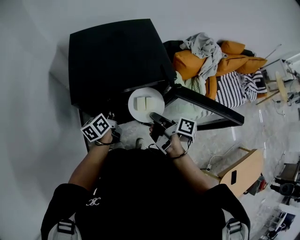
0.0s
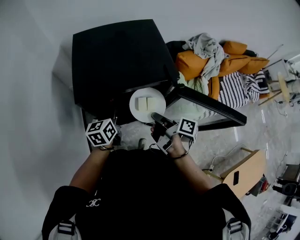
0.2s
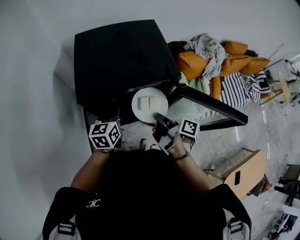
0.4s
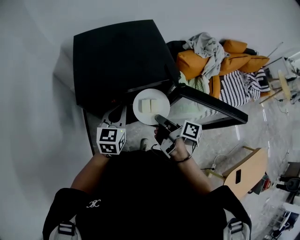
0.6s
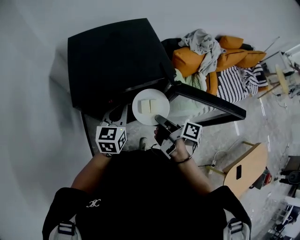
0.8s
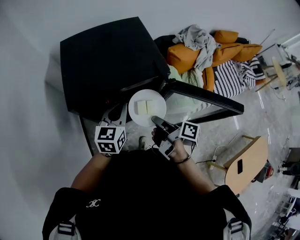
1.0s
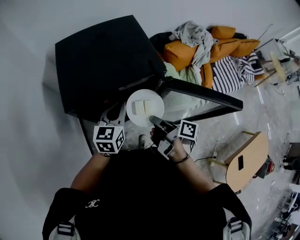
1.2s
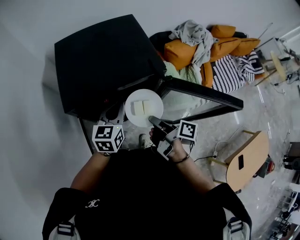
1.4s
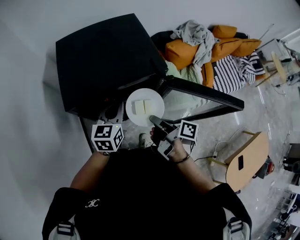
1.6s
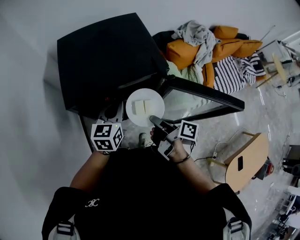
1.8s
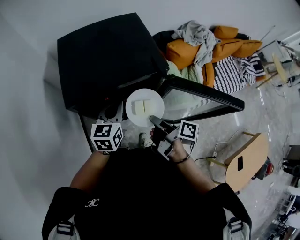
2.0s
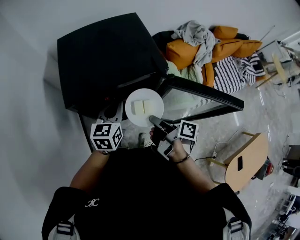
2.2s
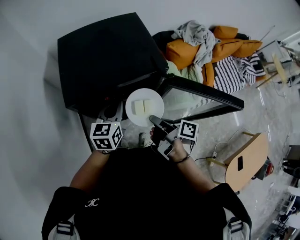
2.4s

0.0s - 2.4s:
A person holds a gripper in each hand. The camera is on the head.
0.0s - 1.2s: The left gripper shifts approximately 10 cm upward and to the right, and changes its angle by some 40 degrees.
1.2s - 2.4s: There are only small adjustments of the grippers.

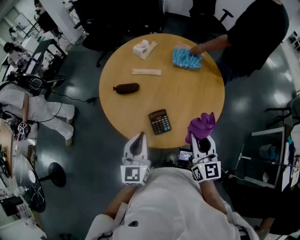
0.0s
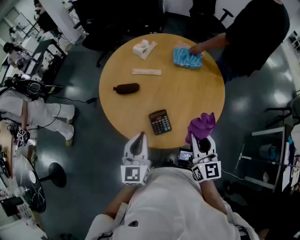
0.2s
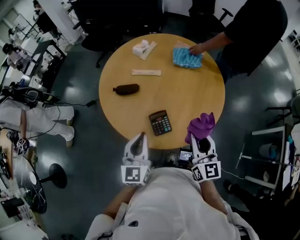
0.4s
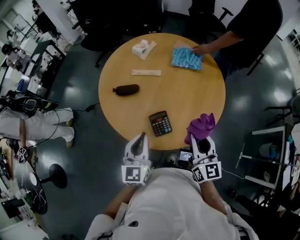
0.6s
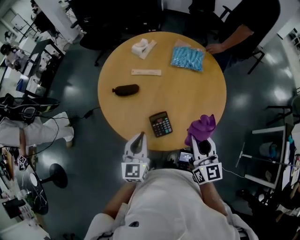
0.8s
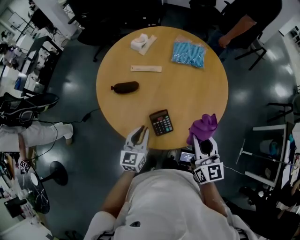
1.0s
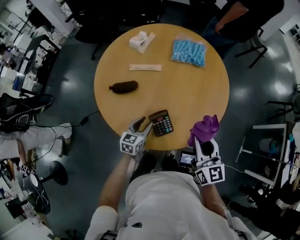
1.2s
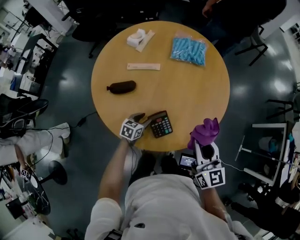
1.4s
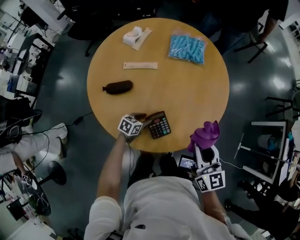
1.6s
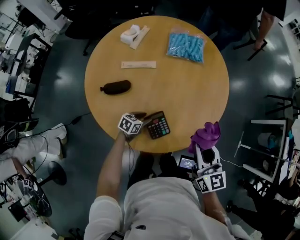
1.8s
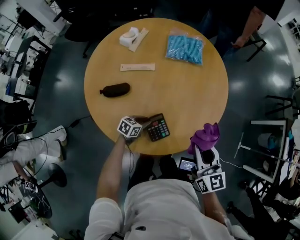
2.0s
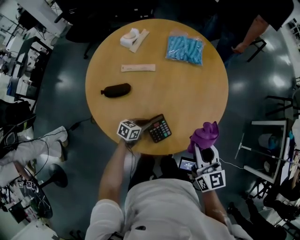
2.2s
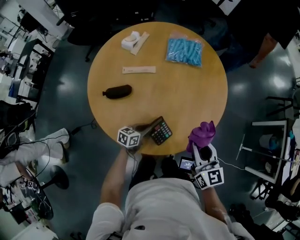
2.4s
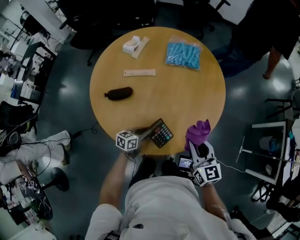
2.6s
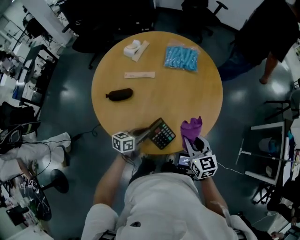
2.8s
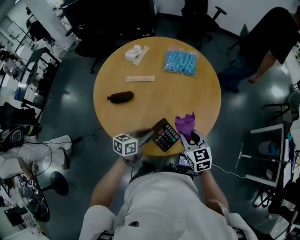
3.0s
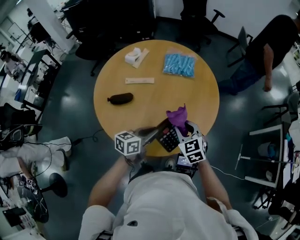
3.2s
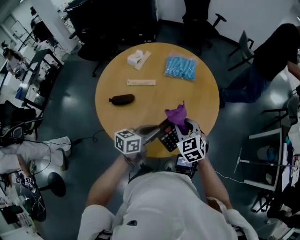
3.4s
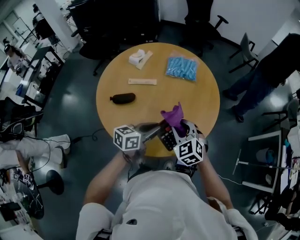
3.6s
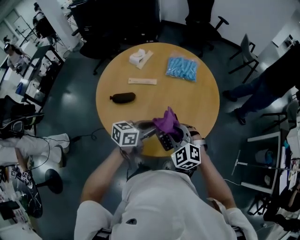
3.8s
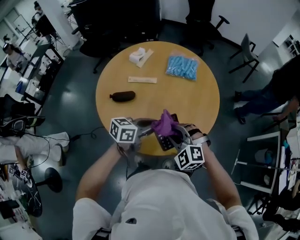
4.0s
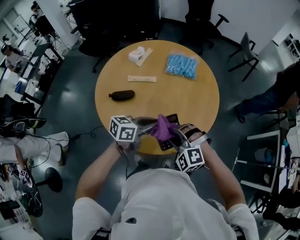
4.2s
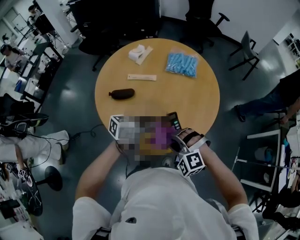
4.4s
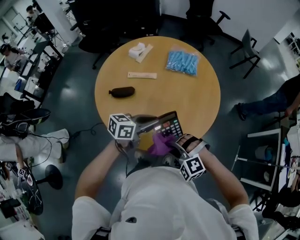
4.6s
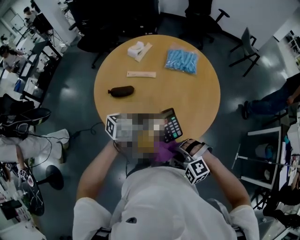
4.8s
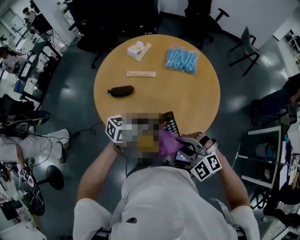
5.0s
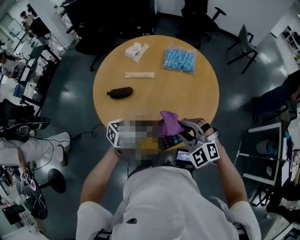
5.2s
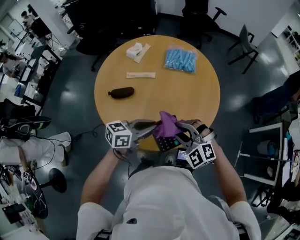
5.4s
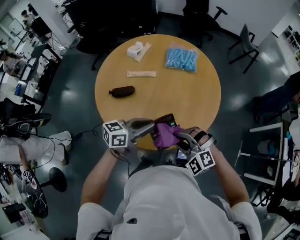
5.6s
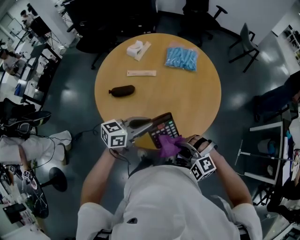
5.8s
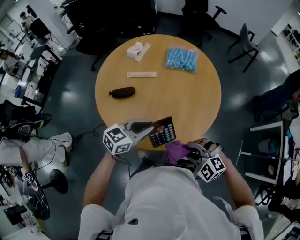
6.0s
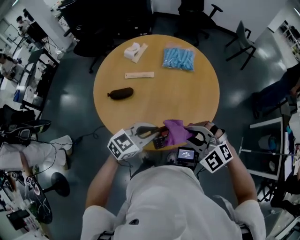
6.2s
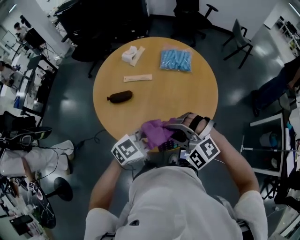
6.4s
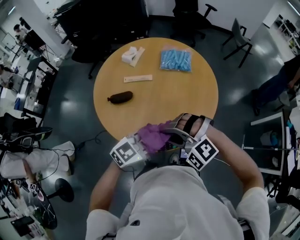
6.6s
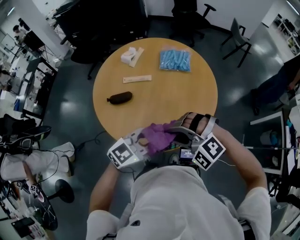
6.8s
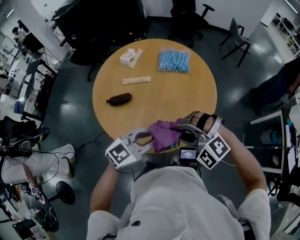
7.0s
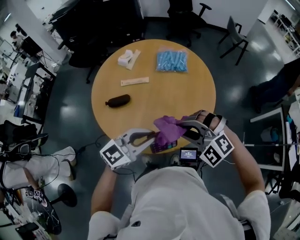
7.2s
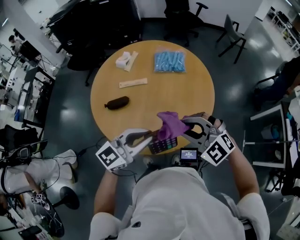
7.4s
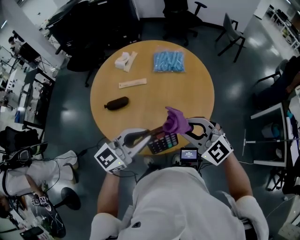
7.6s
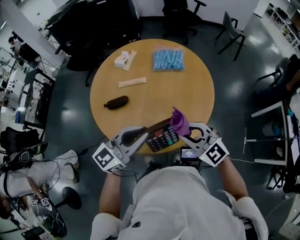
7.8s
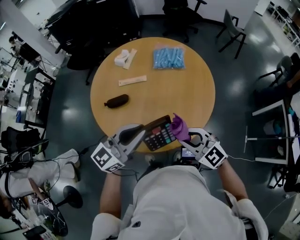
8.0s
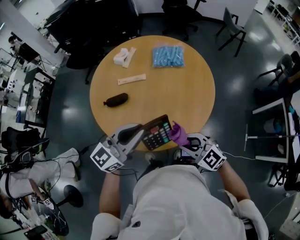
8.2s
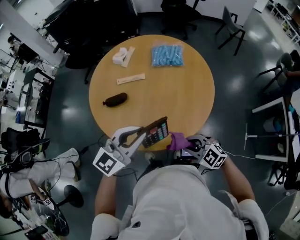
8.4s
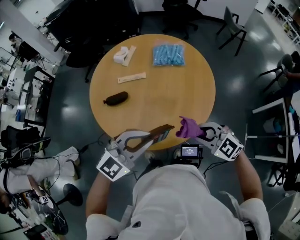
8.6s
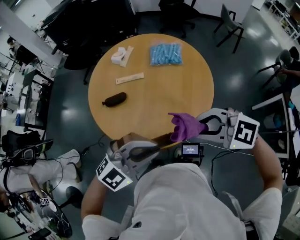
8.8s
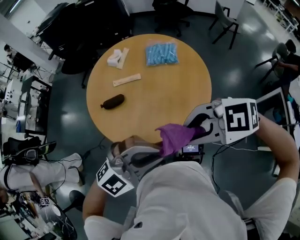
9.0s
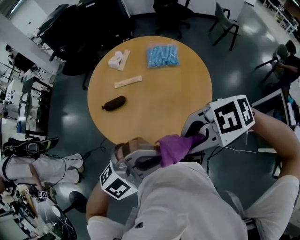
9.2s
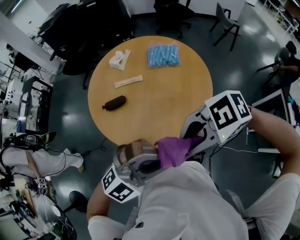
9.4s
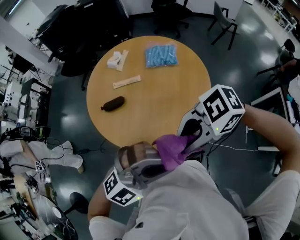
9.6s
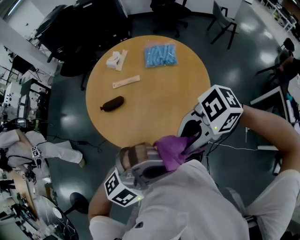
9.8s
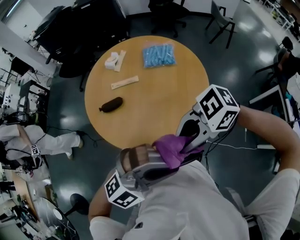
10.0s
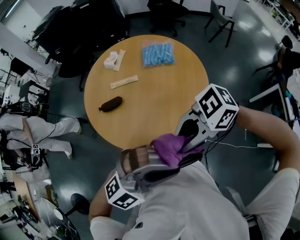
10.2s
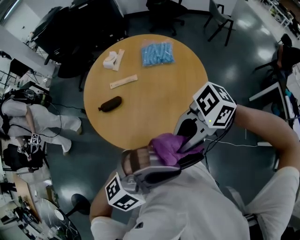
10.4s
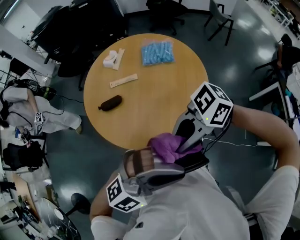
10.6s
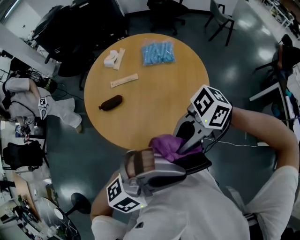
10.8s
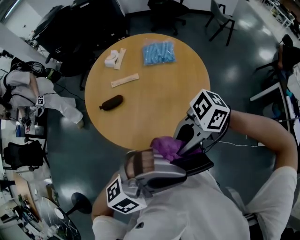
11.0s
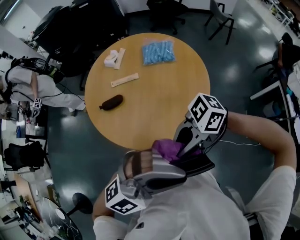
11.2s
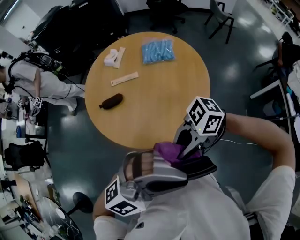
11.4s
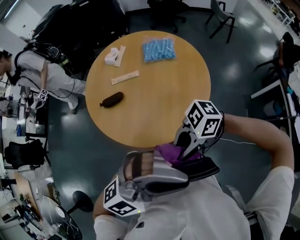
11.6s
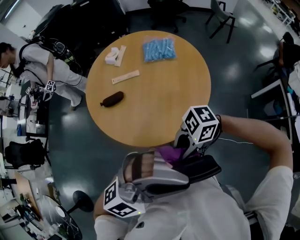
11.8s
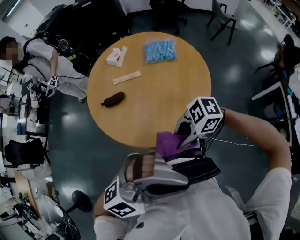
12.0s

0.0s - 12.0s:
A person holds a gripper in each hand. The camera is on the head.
0.0s - 1.6s: The right gripper changes place by approximately 5 cm. Meanwhile the left gripper is displaced downward by about 30 cm, points its fingers approximately 30 degrees further downward, and opens.
1.6s - 3.0s: The left gripper is displaced upward by some 20 cm, turns by about 30 degrees, and closes its fingers, while the right gripper moves downward, some 5 cm, and rotates roughly 20 degrees.
3.0s - 4.4s: The left gripper shifts approximately 10 cm upward. The right gripper travels backward and to the left by some 10 cm, and twists some 70 degrees counterclockwise, seen from behind.
4.4s - 6.0s: The right gripper reaches roughly 5 cm upward, then returns. The left gripper turns by roughly 20 degrees.
6.0s - 7.6s: The two grippers go about 10 cm upward. The left gripper changes its angle by approximately 20 degrees; the right gripper swivels some 30 degrees.
7.6s - 9.0s: The left gripper shifts by approximately 10 cm, and rotates approximately 40 degrees; the right gripper travels downward and back again, roughly 15 cm each way, and turns by some 50 degrees.
9.0s - 10.4s: The left gripper changes place by roughly 5 cm. Meanwhile the right gripper rotates roughly 30 degrees.
10.4s - 12.0s: The left gripper goes some 5 cm upward; the right gripper shifts approximately 10 cm downward.

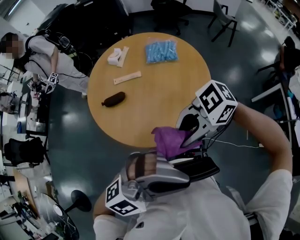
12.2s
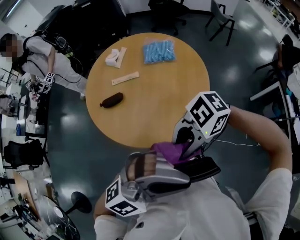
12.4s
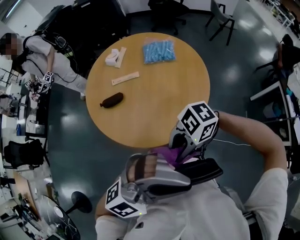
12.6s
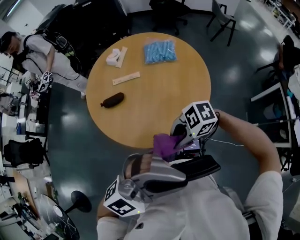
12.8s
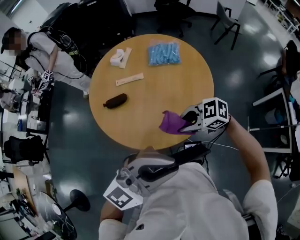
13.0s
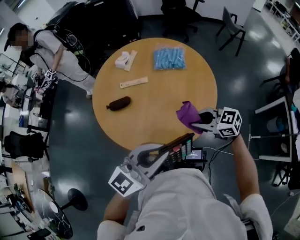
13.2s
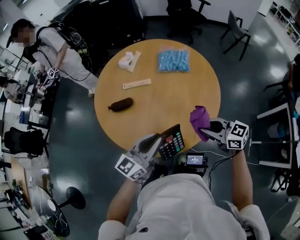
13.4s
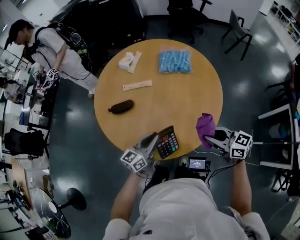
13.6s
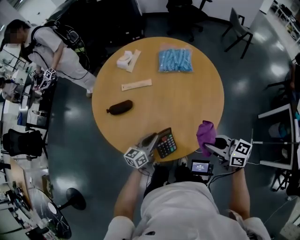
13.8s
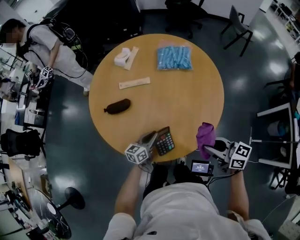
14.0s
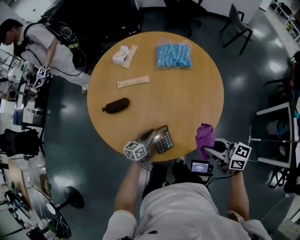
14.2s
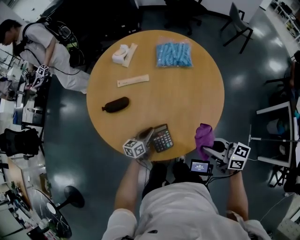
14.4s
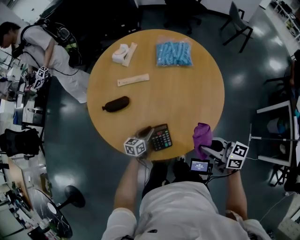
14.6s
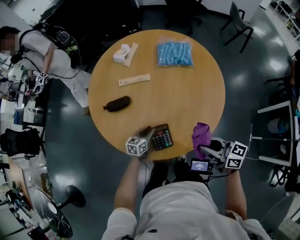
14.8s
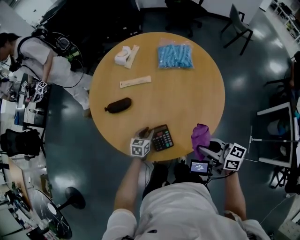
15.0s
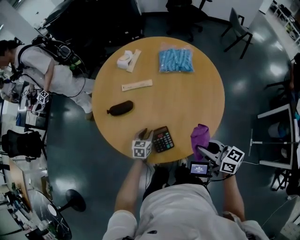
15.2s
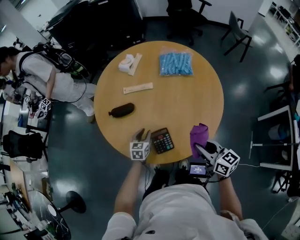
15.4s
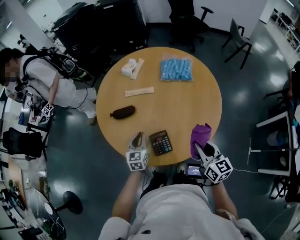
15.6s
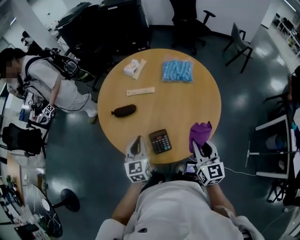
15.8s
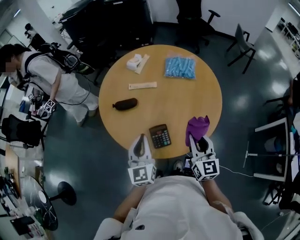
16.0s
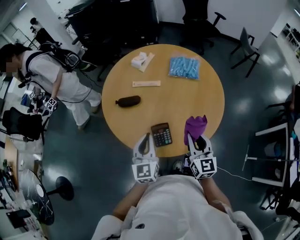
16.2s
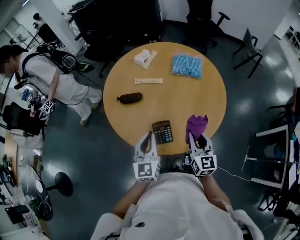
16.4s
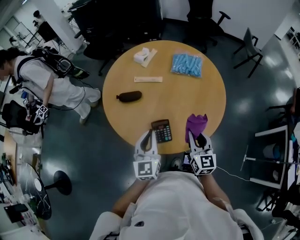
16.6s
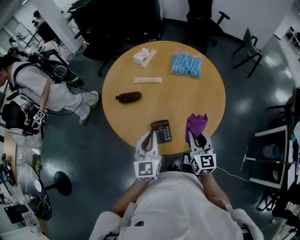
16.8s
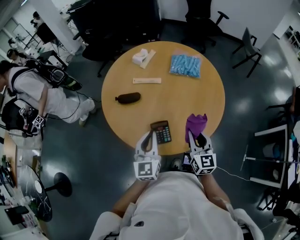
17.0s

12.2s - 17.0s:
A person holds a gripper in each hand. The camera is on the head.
12.2s - 13.8s: The left gripper goes some 40 cm downward, and rolls counterclockwise, seen from behind, by roughly 70 degrees. The right gripper heads downward, covering about 15 cm, and turns by roughly 70 degrees.
13.8s - 15.4s: The left gripper heads downward, forward and to the left, covering about 10 cm, and swivels some 30 degrees.
15.4s - 17.0s: The left gripper moves upward and backward, some 25 cm, rotates roughly 30 degrees, and closes up. Meanwhile the right gripper turns by approximately 30 degrees.

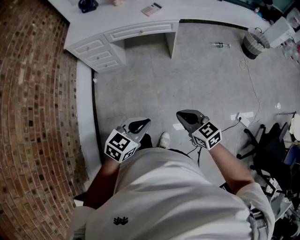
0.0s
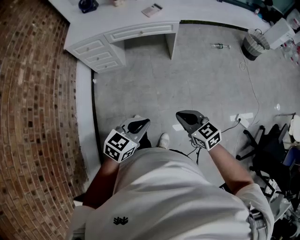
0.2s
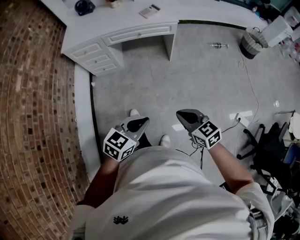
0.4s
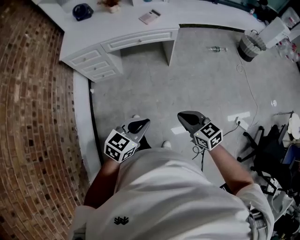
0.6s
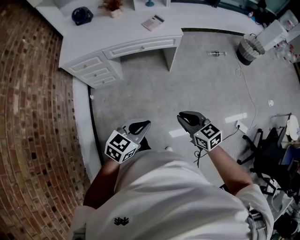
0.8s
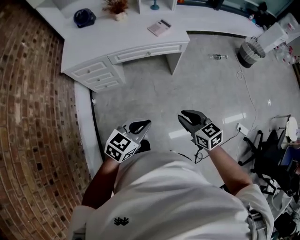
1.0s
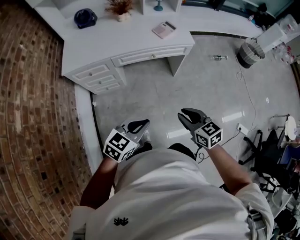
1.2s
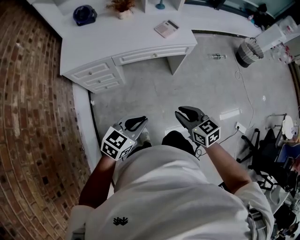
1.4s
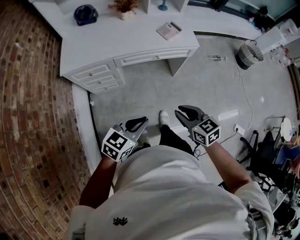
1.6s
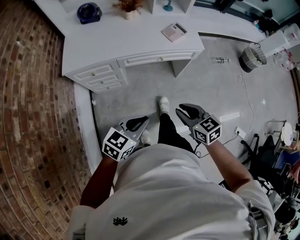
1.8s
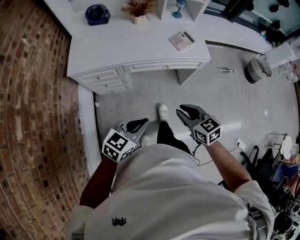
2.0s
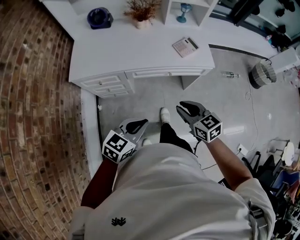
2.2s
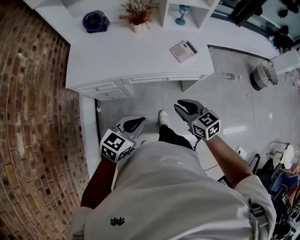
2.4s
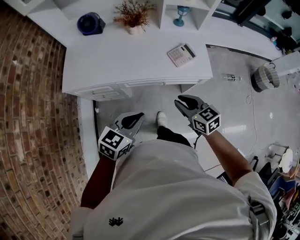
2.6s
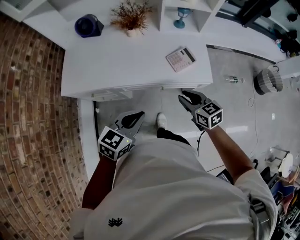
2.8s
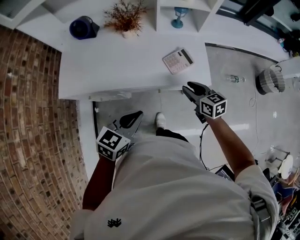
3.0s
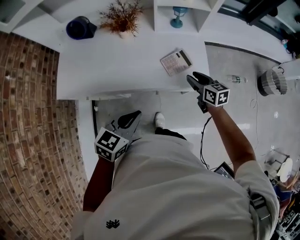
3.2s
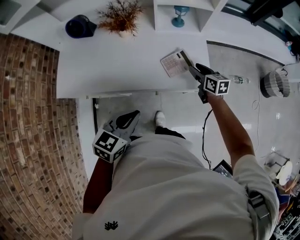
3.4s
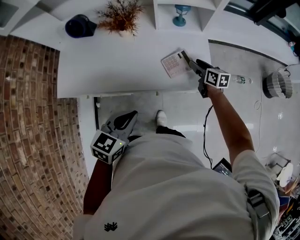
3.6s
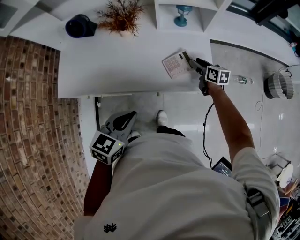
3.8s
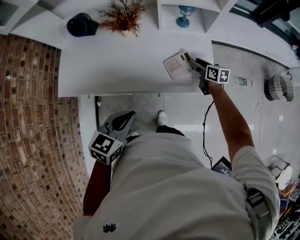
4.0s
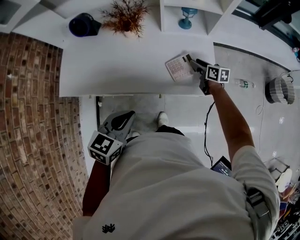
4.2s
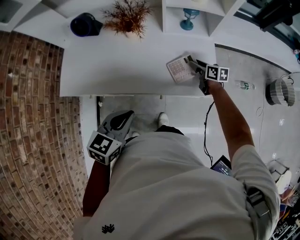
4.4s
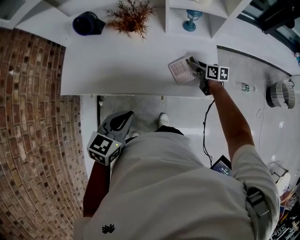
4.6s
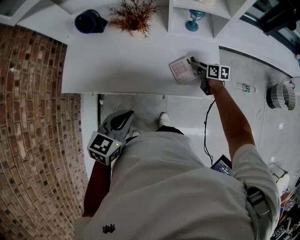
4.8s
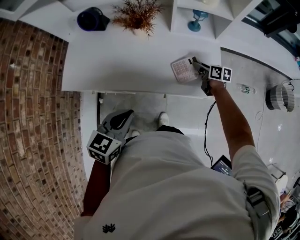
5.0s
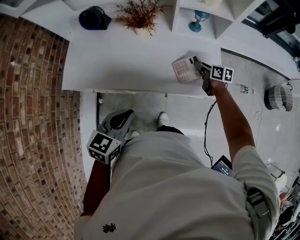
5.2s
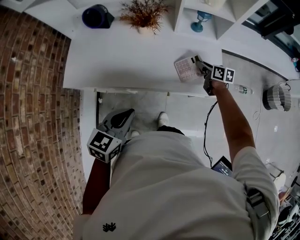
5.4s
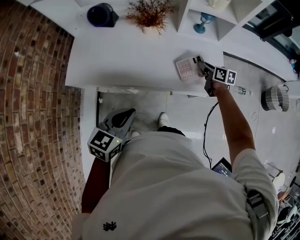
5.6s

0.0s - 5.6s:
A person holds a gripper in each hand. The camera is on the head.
0.0s - 1.4s: The grippers both shift forward and to the left by approximately 35 cm. The right gripper opens its fingers.
1.4s - 2.8s: The two grippers go some 35 cm forward.
2.8s - 4.2s: The right gripper moves forward and downward, approximately 30 cm, swivels about 20 degrees, and opens its fingers. Meanwhile the left gripper travels forward by some 10 cm.
4.2s - 5.6s: The right gripper moves to the left, some 5 cm, and closes its fingers. The left gripper is displaced to the left by approximately 10 cm.
